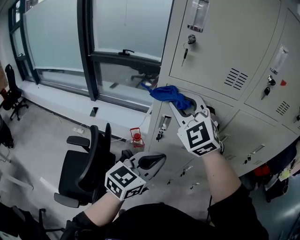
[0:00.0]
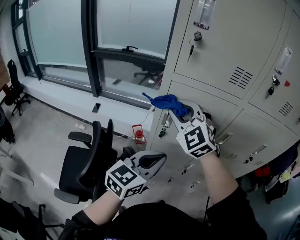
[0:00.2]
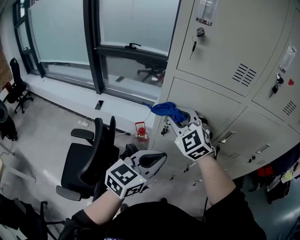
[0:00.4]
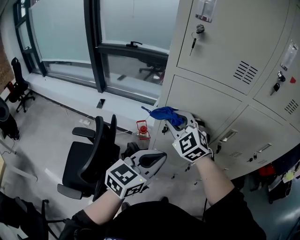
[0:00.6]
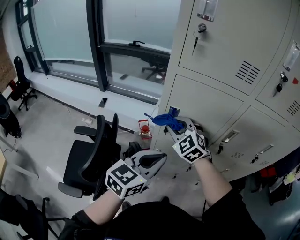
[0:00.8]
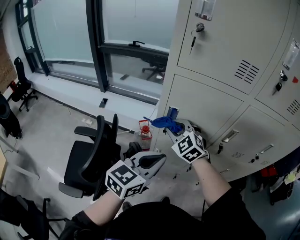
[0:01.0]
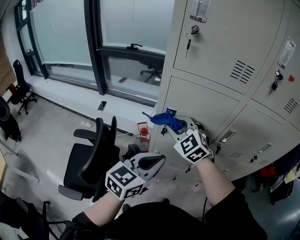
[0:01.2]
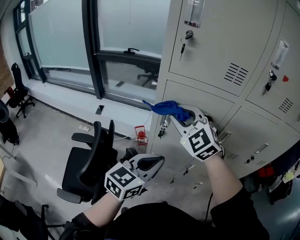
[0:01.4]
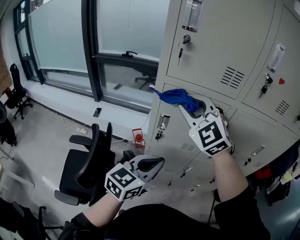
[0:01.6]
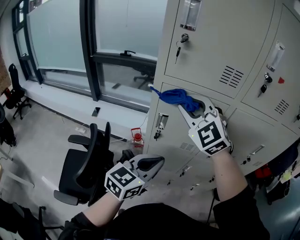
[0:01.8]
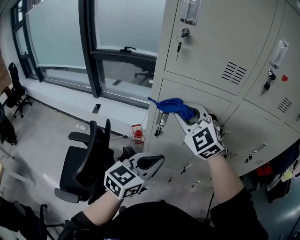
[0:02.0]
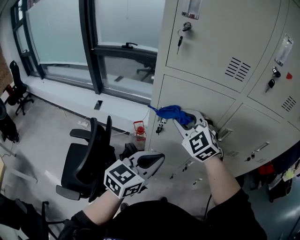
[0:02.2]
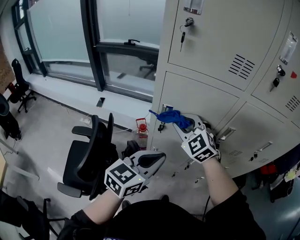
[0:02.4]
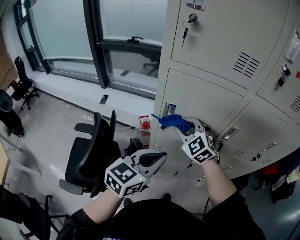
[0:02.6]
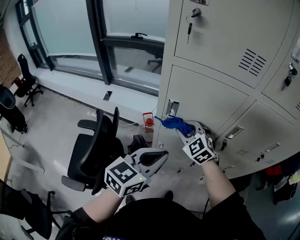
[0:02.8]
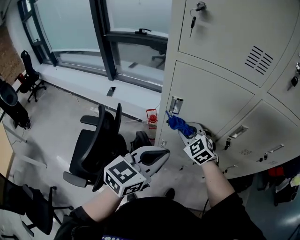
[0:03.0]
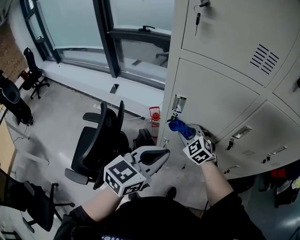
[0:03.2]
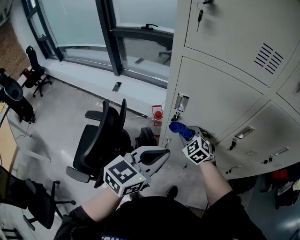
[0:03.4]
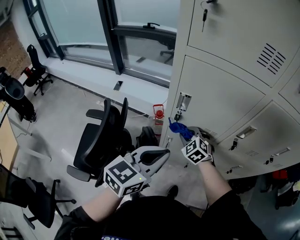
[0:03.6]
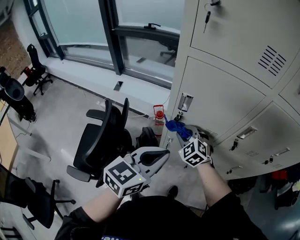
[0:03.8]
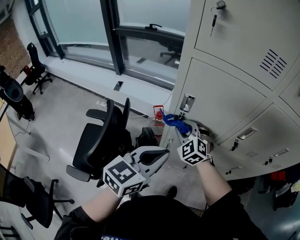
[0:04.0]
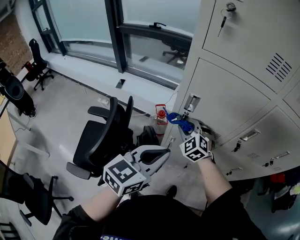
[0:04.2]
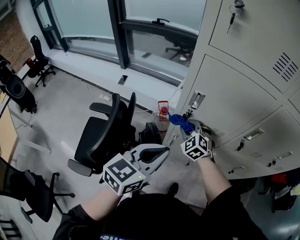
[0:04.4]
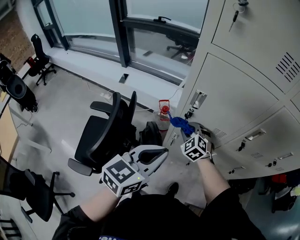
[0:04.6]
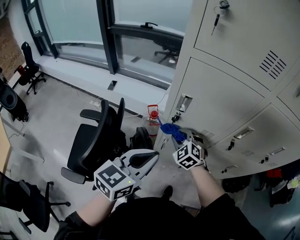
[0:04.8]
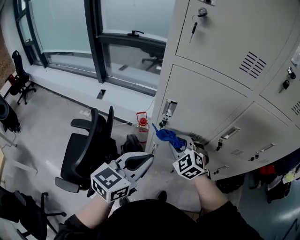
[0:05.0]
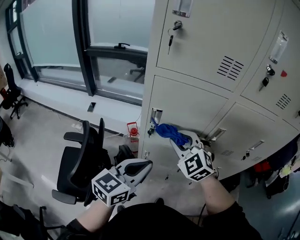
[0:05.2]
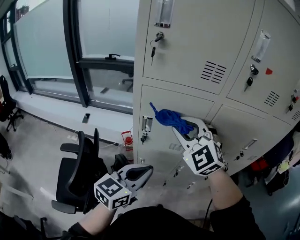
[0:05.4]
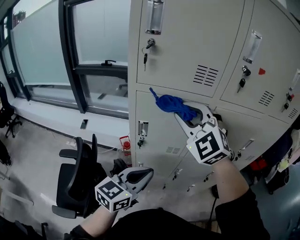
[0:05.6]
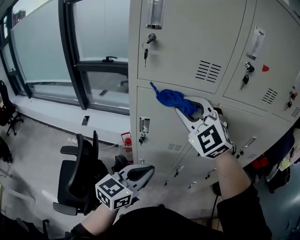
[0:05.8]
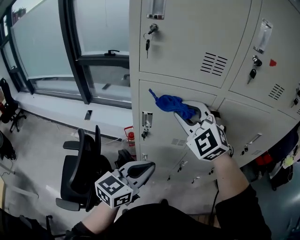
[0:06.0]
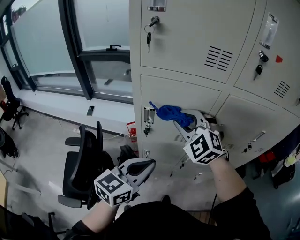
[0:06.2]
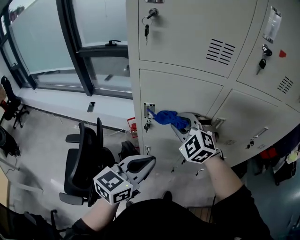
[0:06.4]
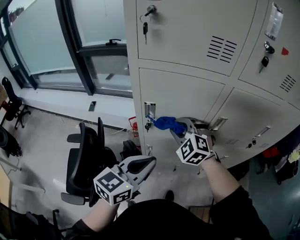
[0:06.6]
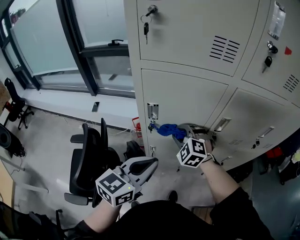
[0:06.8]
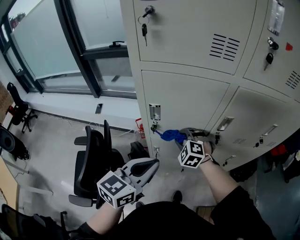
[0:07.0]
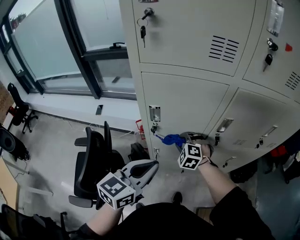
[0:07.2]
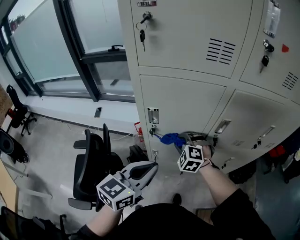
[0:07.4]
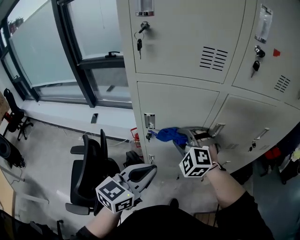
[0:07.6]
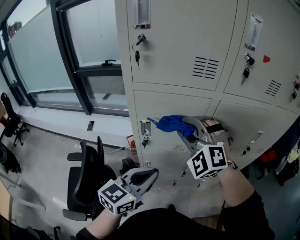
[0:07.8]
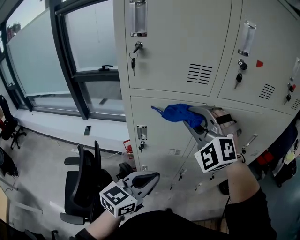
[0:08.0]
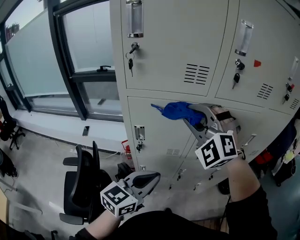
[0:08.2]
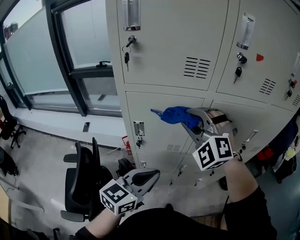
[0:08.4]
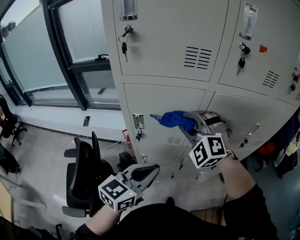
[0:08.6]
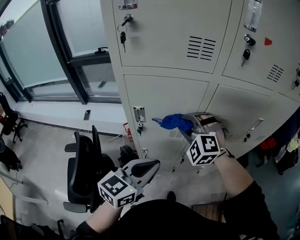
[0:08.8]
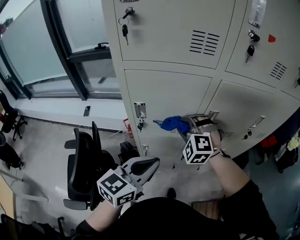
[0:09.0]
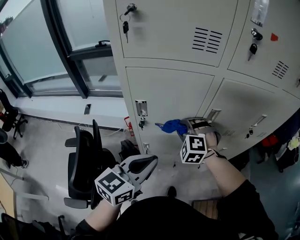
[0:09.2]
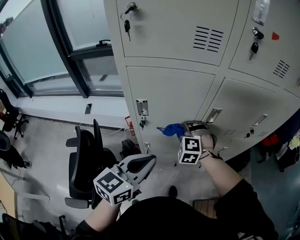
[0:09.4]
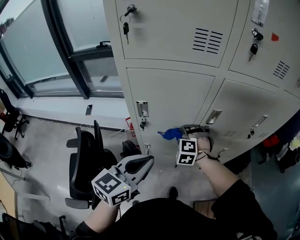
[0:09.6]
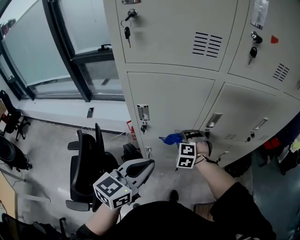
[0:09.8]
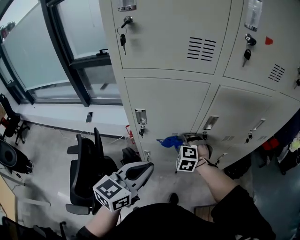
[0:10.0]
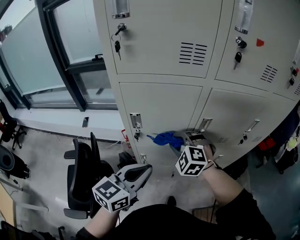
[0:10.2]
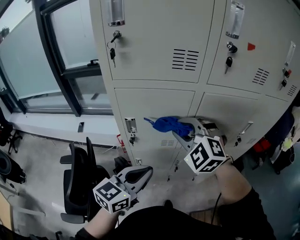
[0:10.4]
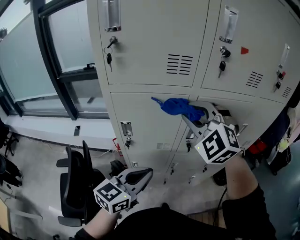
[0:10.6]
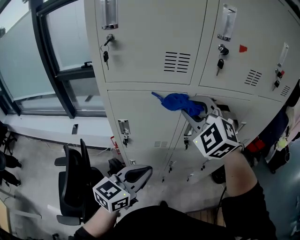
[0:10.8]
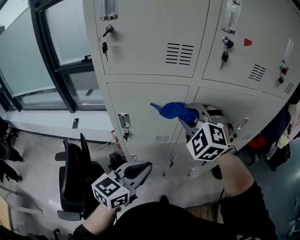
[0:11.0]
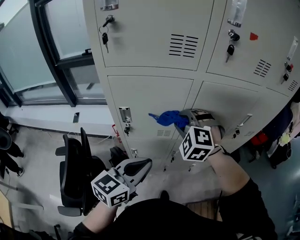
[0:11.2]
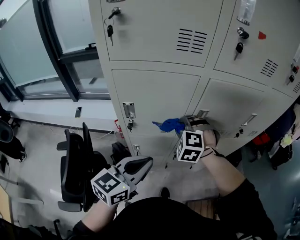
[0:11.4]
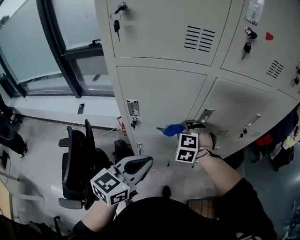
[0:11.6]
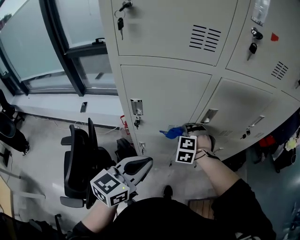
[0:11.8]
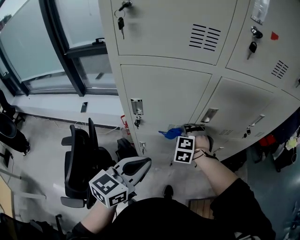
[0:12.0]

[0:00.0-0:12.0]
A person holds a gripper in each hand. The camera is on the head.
0:00.0 to 0:01.6: The right gripper moves roughly 20 cm downward and comes back.
0:01.6 to 0:03.0: The right gripper goes about 30 cm downward, and rotates about 30 degrees.
0:03.0 to 0:04.4: The right gripper moves up and down over approximately 10 cm, changing direction 2 times, while the left gripper heads to the left, covering approximately 5 cm.
0:04.4 to 0:06.0: The right gripper travels upward by roughly 30 cm, and rotates roughly 20 degrees, while the left gripper goes approximately 10 cm to the right.
0:06.0 to 0:07.6: The right gripper moves downward, some 15 cm, and rotates approximately 20 degrees.
0:07.6 to 0:09.0: The right gripper moves approximately 20 cm upward and comes back.
0:09.0 to 0:10.4: The right gripper shifts approximately 10 cm upward.
0:10.4 to 0:12.0: The right gripper goes about 25 cm downward, and turns by approximately 40 degrees.

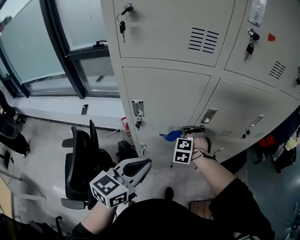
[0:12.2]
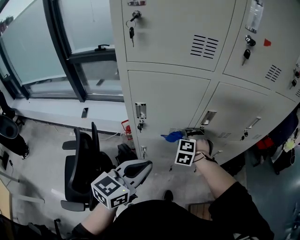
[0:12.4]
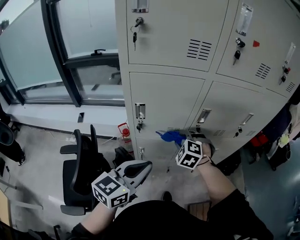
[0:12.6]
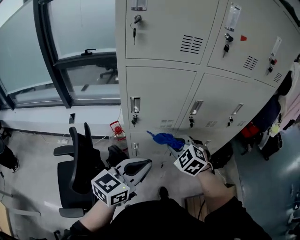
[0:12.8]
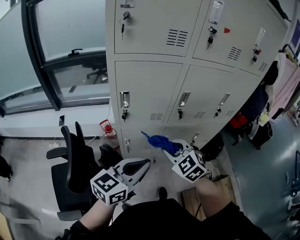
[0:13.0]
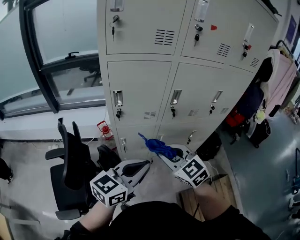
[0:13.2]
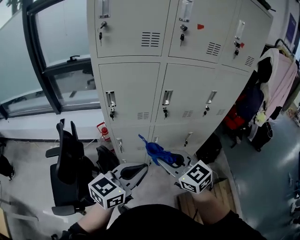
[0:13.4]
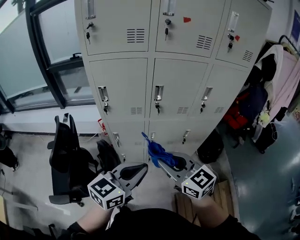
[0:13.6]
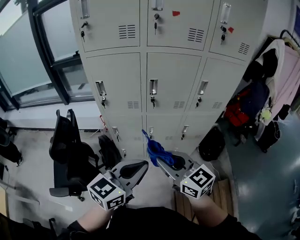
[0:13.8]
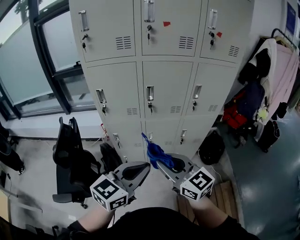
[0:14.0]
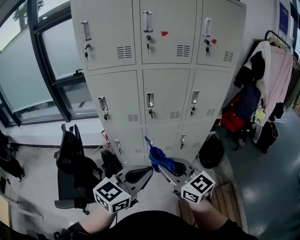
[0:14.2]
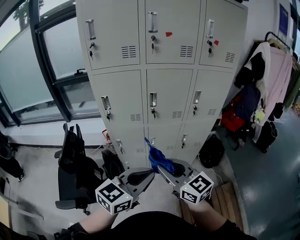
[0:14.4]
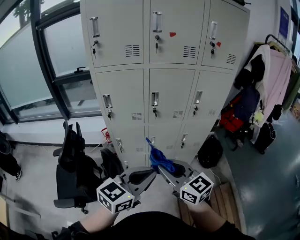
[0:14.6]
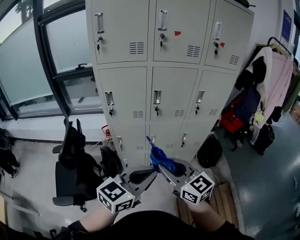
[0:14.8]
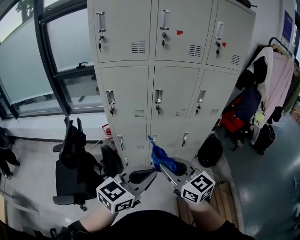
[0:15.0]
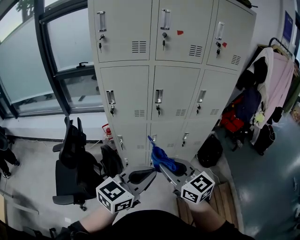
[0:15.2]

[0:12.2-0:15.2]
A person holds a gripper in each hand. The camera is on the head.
0:12.2 to 0:13.8: The left gripper heads to the right and backward, covering approximately 30 cm. Meanwhile the right gripper moves backward, upward and to the right, roughly 40 cm, and tilts its fingers approximately 50 degrees upward.
0:13.8 to 0:15.2: Both grippers move backward, some 5 cm.

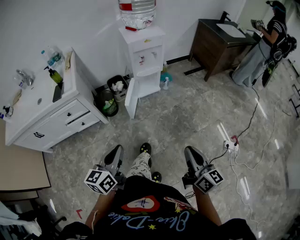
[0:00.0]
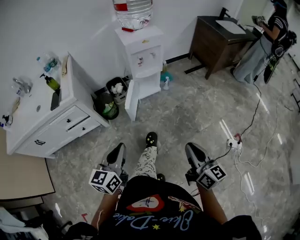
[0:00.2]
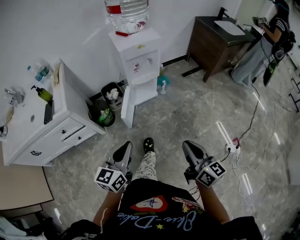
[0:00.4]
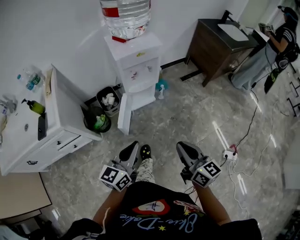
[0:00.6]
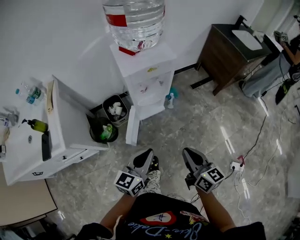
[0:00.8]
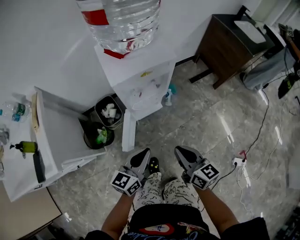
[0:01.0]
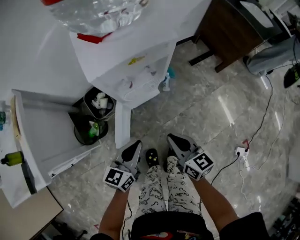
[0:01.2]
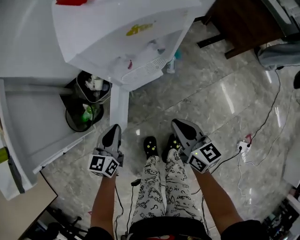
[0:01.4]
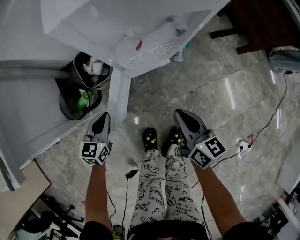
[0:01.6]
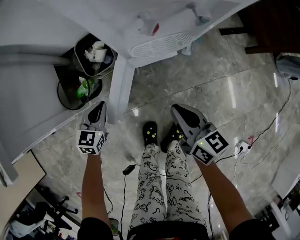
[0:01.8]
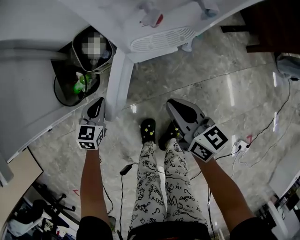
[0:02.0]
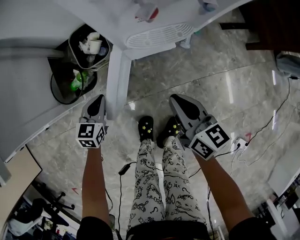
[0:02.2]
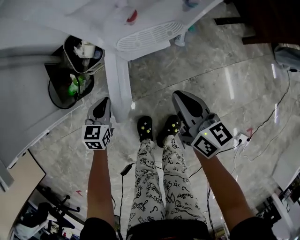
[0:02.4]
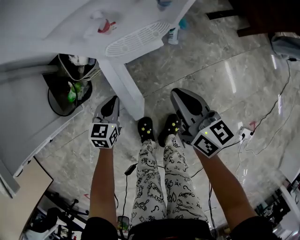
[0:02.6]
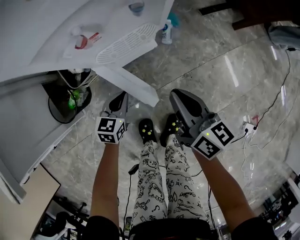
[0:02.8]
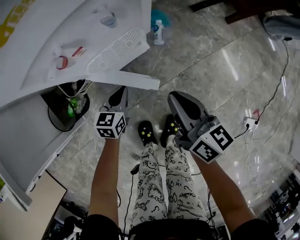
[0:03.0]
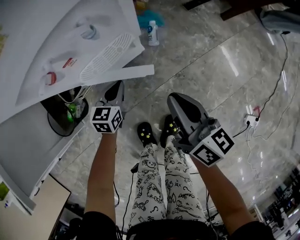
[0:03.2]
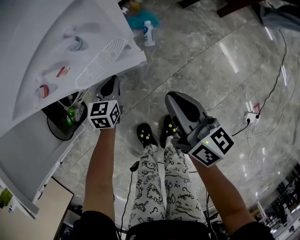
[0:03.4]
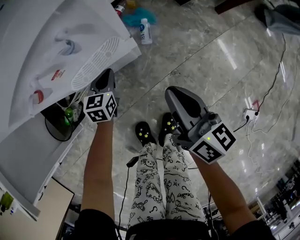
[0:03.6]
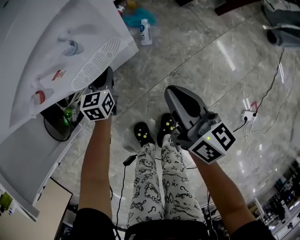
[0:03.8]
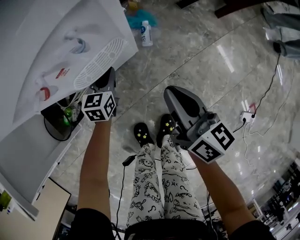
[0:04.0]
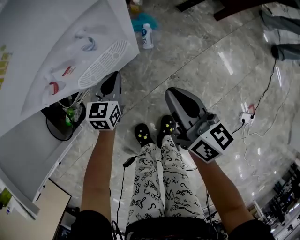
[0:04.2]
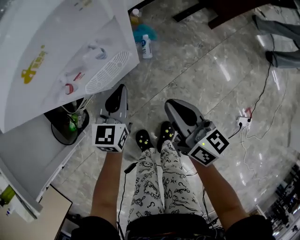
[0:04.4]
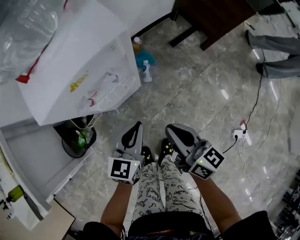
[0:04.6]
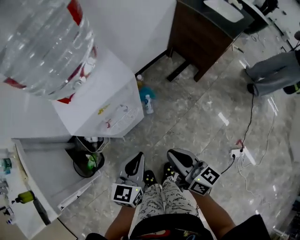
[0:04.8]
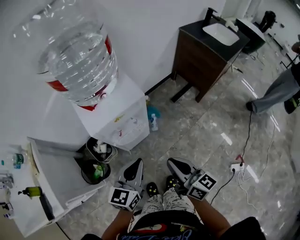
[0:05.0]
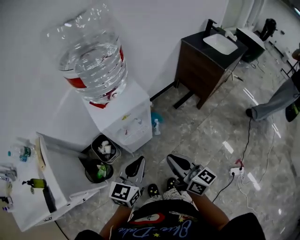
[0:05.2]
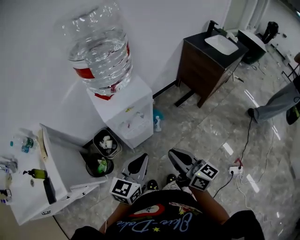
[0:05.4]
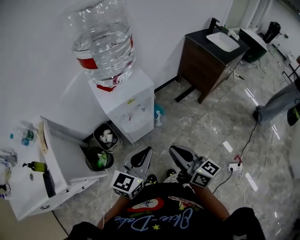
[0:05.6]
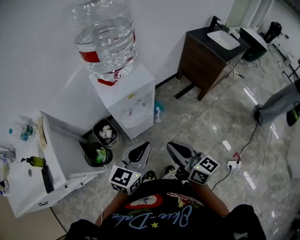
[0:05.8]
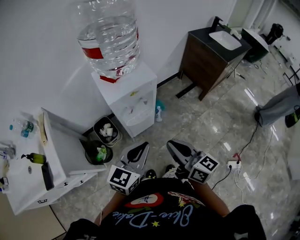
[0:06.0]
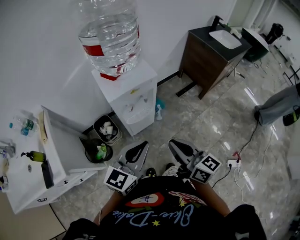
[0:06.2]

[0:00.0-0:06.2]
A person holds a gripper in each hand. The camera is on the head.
0:00.0 to 0:01.6: The pair of grippers is taken forward, approximately 50 cm. Both grippers move downward, roughly 35 cm. The right gripper changes its angle by approximately 20 degrees; the left gripper changes its angle by some 20 degrees.
0:01.6 to 0:03.2: The left gripper goes roughly 25 cm to the right, forward and downward; the right gripper goes approximately 10 cm to the right.
0:03.2 to 0:04.6: The left gripper is displaced upward by about 25 cm, while the right gripper moves upward, about 15 cm.
0:04.6 to 0:06.2: The grippers both shift upward and backward by roughly 30 cm. The left gripper changes its angle by some 20 degrees.

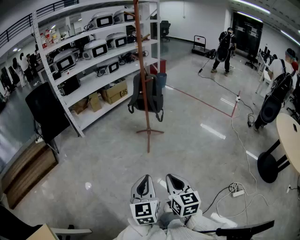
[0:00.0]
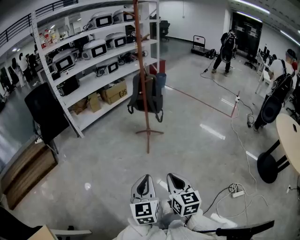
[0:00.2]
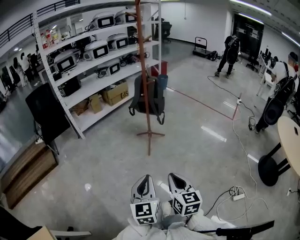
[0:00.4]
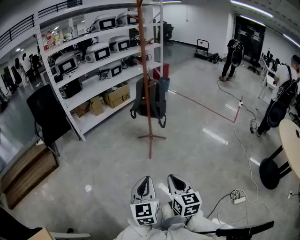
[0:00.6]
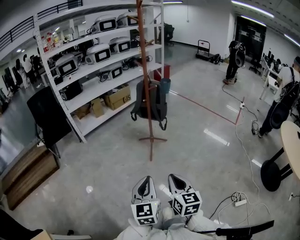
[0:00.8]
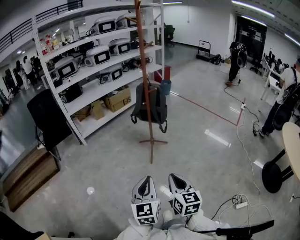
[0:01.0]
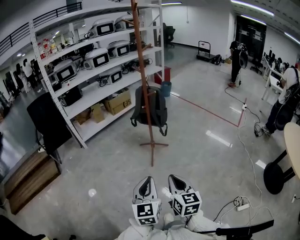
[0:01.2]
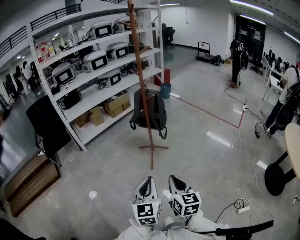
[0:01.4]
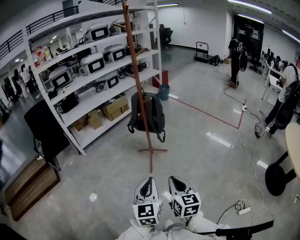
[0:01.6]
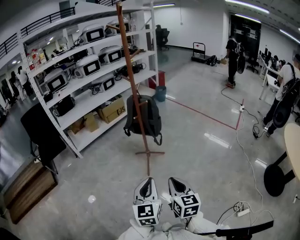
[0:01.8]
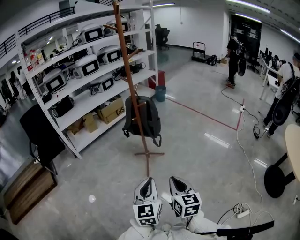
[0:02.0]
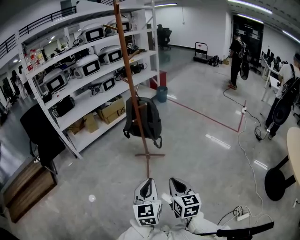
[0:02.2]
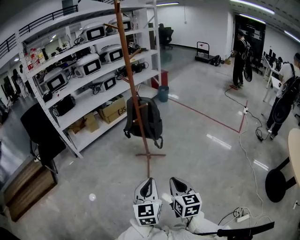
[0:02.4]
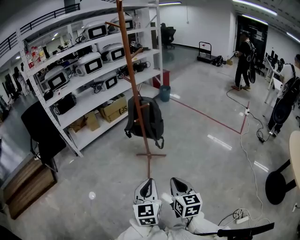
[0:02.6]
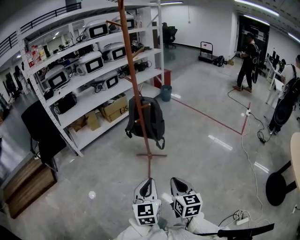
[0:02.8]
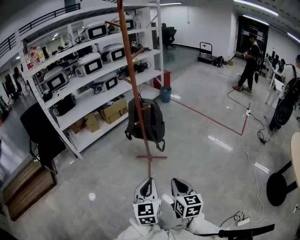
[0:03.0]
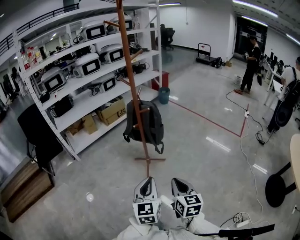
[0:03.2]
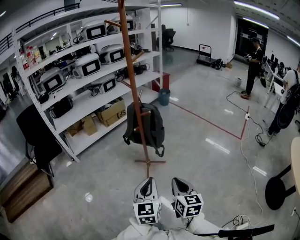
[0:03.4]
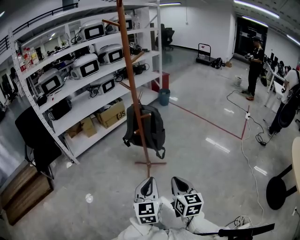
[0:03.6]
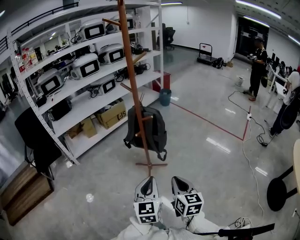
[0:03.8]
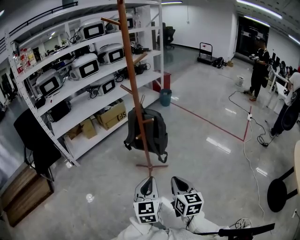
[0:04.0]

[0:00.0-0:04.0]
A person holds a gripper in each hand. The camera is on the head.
0:00.0 to 0:01.4: The two grippers go some 15 cm forward.
0:01.4 to 0:02.6: Both grippers travel together forward and to the right, roughly 10 cm.
0:02.6 to 0:04.0: The grippers both shift forward by approximately 15 cm.
